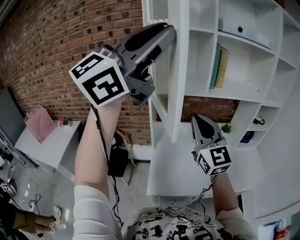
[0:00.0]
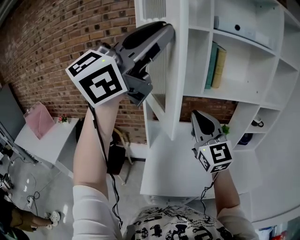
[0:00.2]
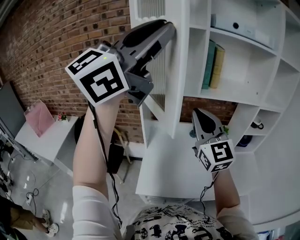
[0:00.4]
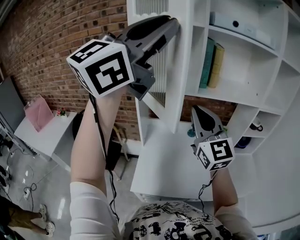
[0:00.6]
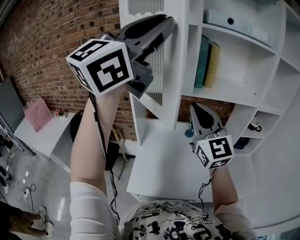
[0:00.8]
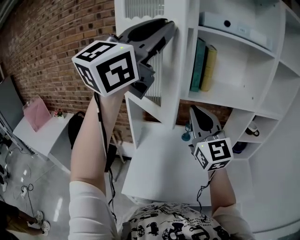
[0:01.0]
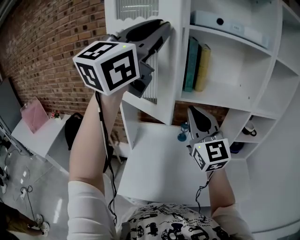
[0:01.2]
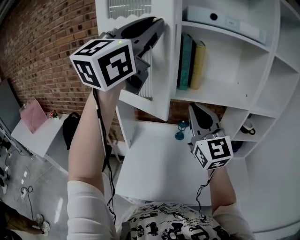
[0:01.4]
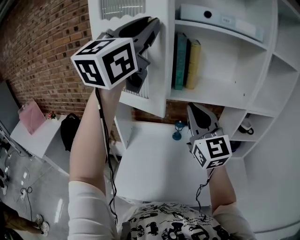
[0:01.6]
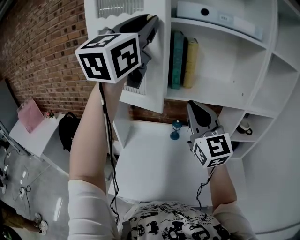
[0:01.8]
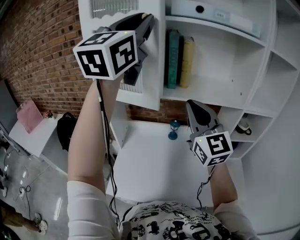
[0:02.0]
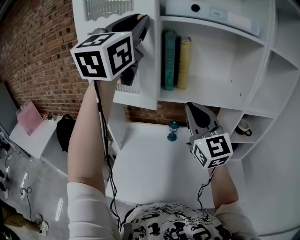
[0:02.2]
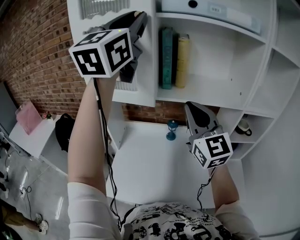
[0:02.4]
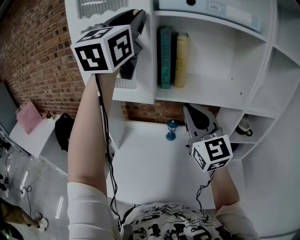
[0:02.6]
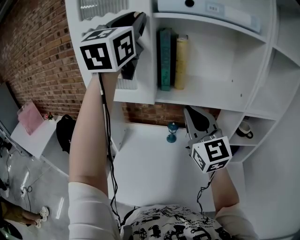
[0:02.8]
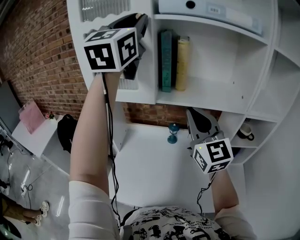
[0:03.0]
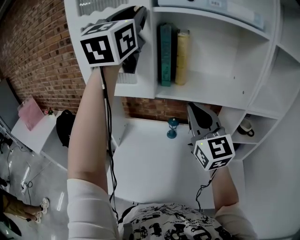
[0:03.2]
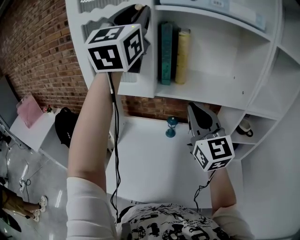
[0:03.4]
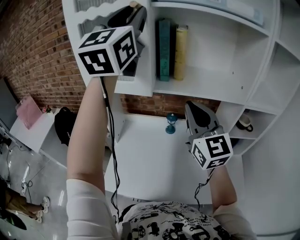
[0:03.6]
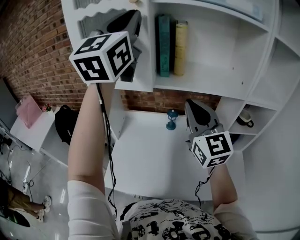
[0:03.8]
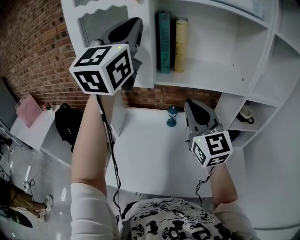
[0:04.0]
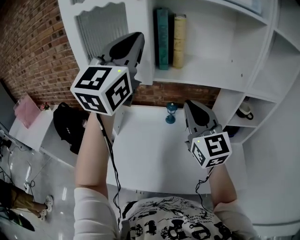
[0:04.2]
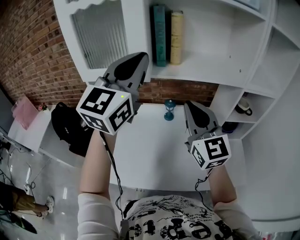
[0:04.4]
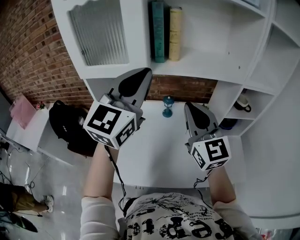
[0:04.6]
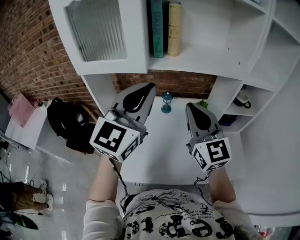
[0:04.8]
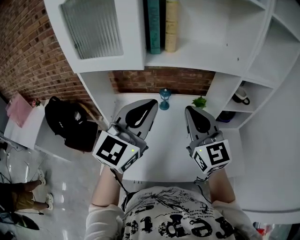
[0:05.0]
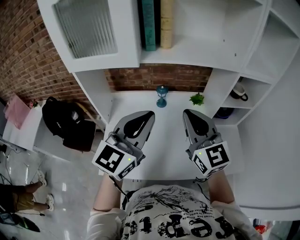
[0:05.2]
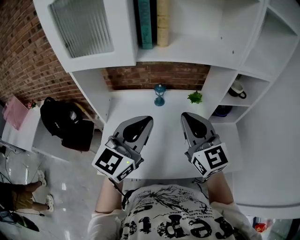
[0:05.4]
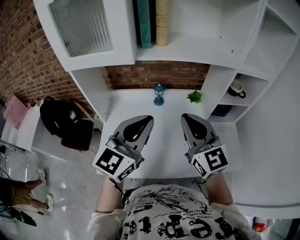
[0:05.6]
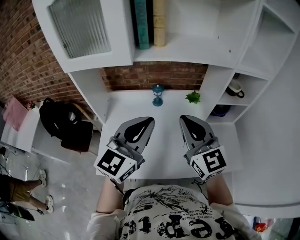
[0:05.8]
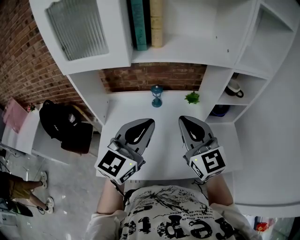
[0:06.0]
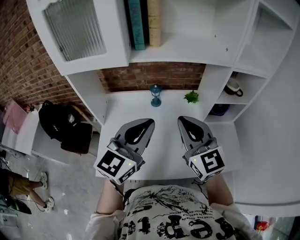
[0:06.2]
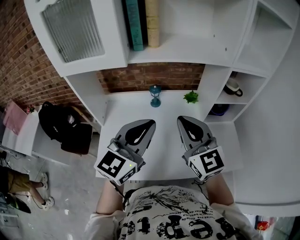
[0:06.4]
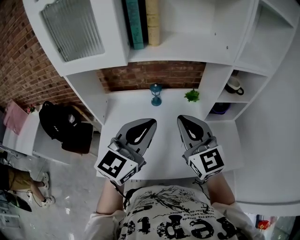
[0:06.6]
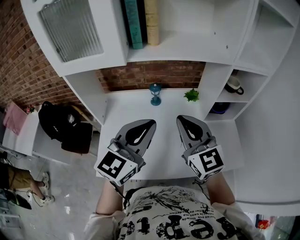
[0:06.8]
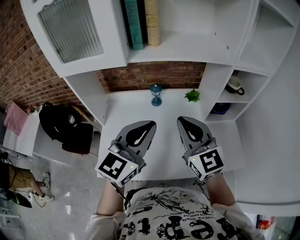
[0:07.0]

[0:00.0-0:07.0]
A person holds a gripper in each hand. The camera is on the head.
0:00.0 to 0:01.4: The left gripper shifts about 20 cm forward and to the right, and swivels approximately 20 degrees. The right gripper travels to the right and forward by approximately 20 cm.
0:01.4 to 0:02.8: The left gripper goes some 15 cm forward and to the right, and rotates about 20 degrees; the right gripper shifts some 10 cm to the right and forward.
0:02.8 to 0:04.2: The right gripper is displaced downward by some 5 cm. Meanwhile the left gripper is displaced downward by some 15 cm.
0:04.2 to 0:05.6: The left gripper heads downward, covering some 25 cm, and changes its angle by about 30 degrees; the right gripper heads downward and backward, covering about 10 cm.
0:05.6 to 0:07.0: The grippers make only small movements.

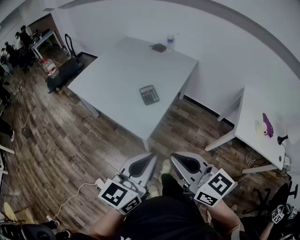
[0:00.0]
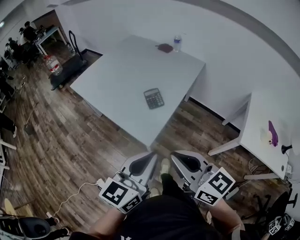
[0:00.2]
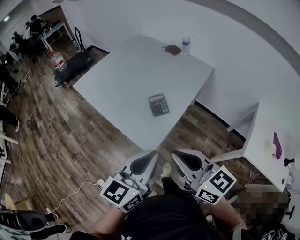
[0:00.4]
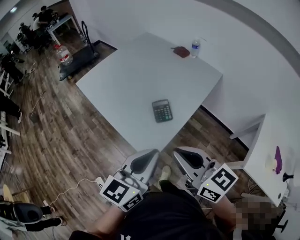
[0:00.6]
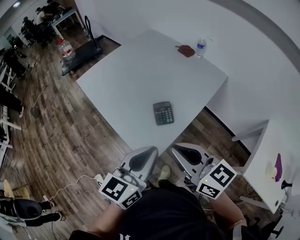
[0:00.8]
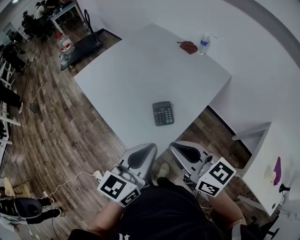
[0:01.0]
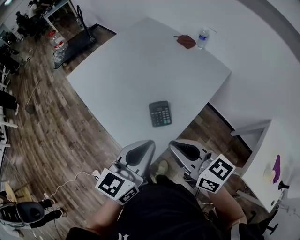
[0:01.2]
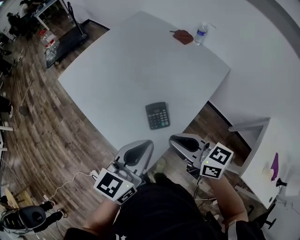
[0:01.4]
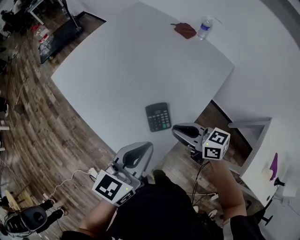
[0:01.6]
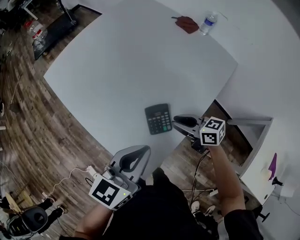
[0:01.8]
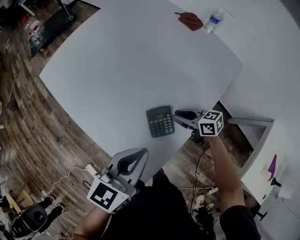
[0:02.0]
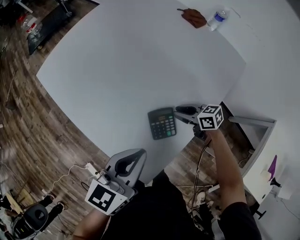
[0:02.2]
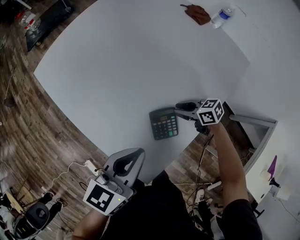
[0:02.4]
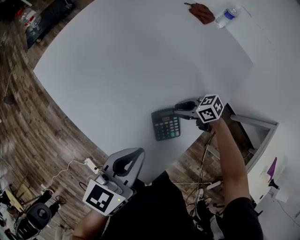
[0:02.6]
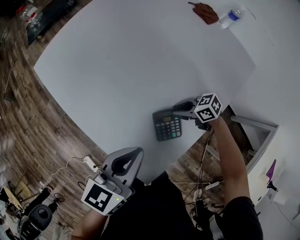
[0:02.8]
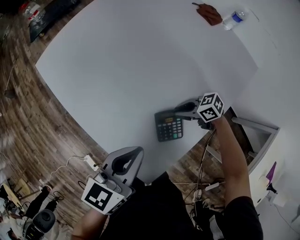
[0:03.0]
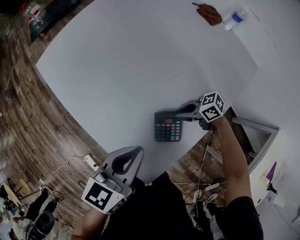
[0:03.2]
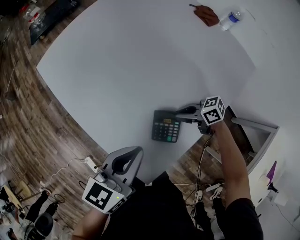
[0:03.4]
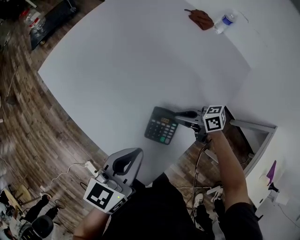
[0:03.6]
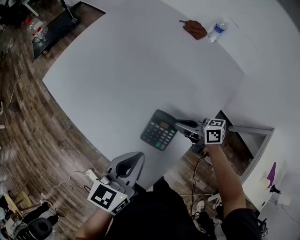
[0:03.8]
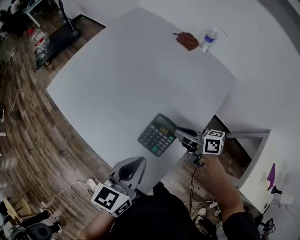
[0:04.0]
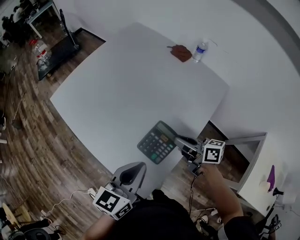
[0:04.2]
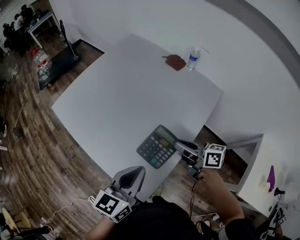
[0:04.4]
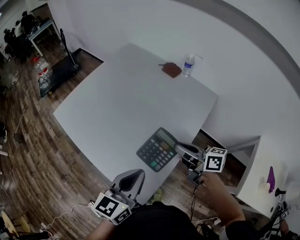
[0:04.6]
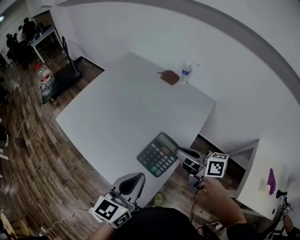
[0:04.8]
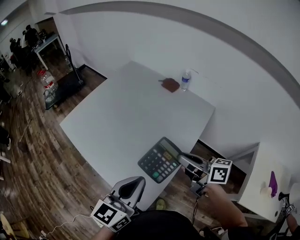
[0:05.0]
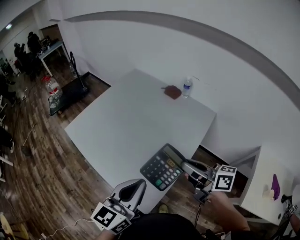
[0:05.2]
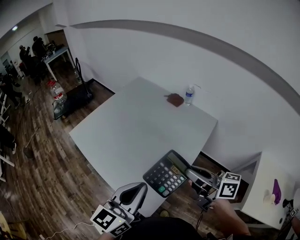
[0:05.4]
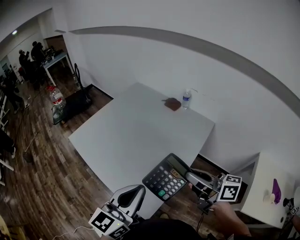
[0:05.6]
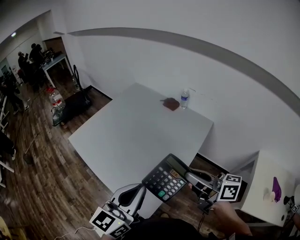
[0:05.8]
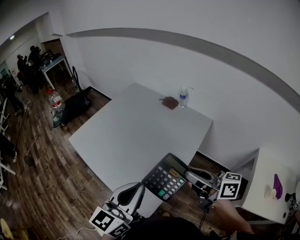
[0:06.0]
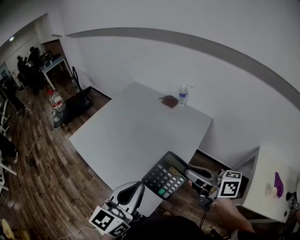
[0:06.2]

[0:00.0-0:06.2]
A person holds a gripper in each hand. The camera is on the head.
0:00.0 to 0:01.6: The right gripper is displaced forward and downward by some 50 cm, and rotates about 30 degrees; the left gripper travels forward by roughly 35 cm.
0:01.6 to 0:03.2: The right gripper goes some 20 cm downward, and swivels some 40 degrees; the left gripper shifts by approximately 15 cm.
0:03.2 to 0:04.6: The left gripper travels upward by about 10 cm, while the right gripper is displaced upward by about 25 cm, and changes its angle by approximately 60 degrees.
0:04.6 to 0:06.2: The grippers both shift upward and backward by approximately 15 cm.

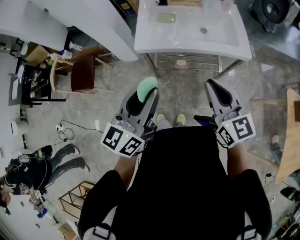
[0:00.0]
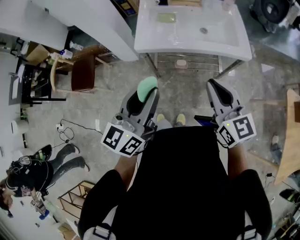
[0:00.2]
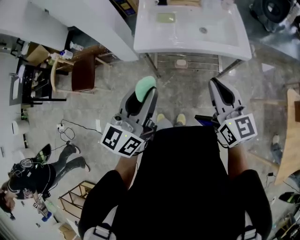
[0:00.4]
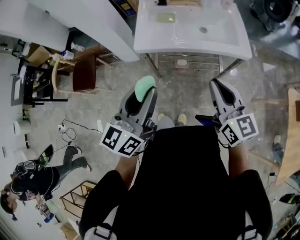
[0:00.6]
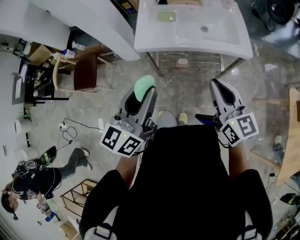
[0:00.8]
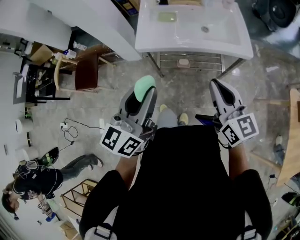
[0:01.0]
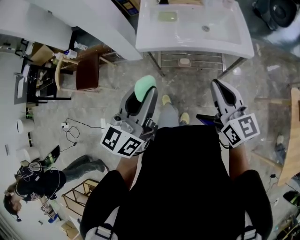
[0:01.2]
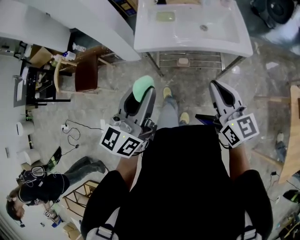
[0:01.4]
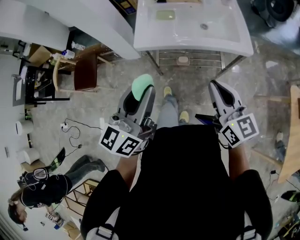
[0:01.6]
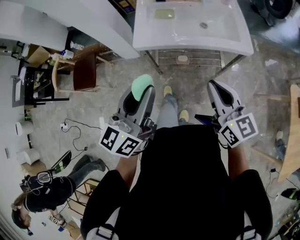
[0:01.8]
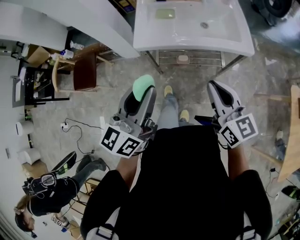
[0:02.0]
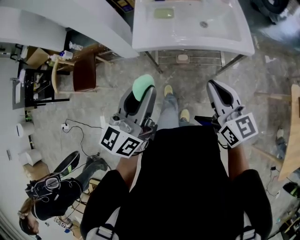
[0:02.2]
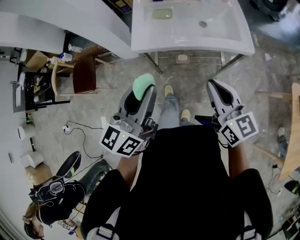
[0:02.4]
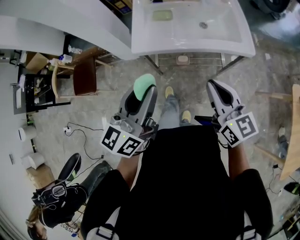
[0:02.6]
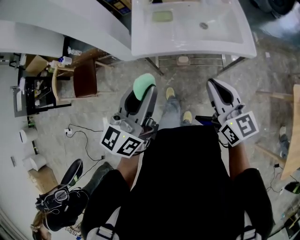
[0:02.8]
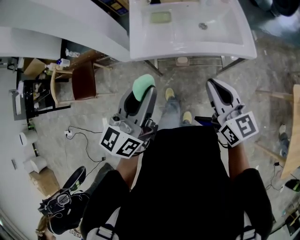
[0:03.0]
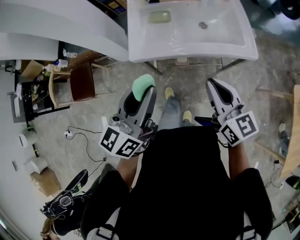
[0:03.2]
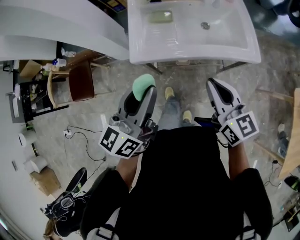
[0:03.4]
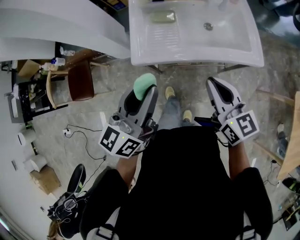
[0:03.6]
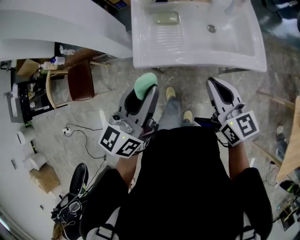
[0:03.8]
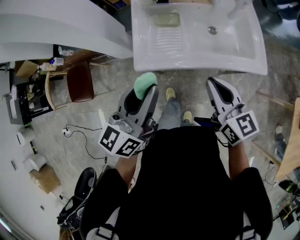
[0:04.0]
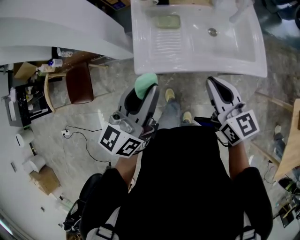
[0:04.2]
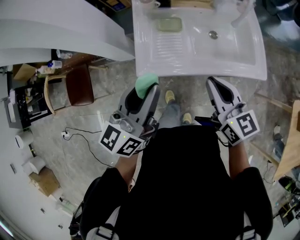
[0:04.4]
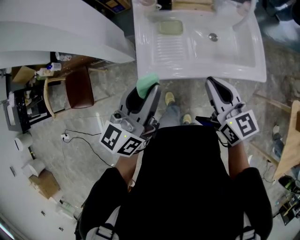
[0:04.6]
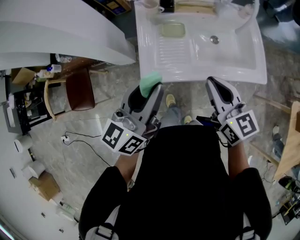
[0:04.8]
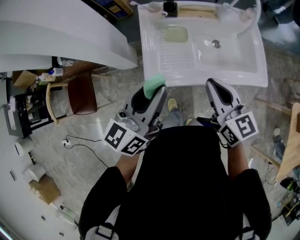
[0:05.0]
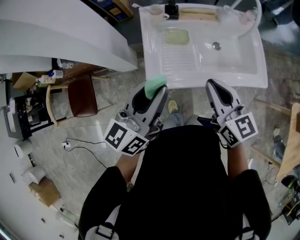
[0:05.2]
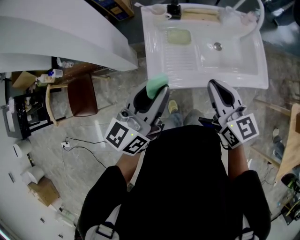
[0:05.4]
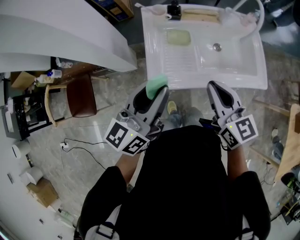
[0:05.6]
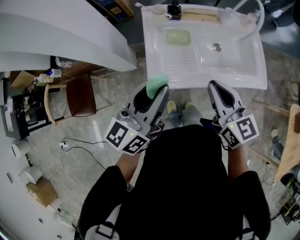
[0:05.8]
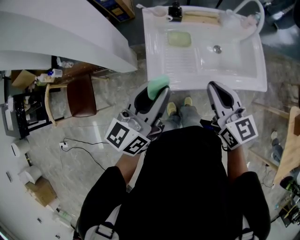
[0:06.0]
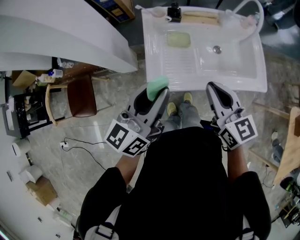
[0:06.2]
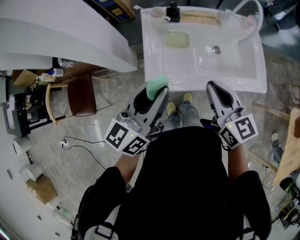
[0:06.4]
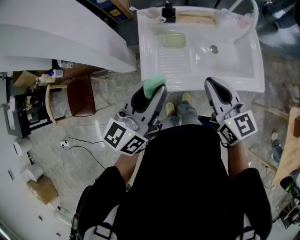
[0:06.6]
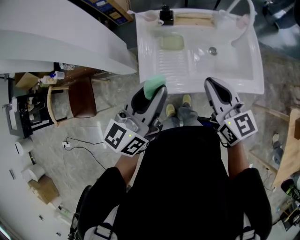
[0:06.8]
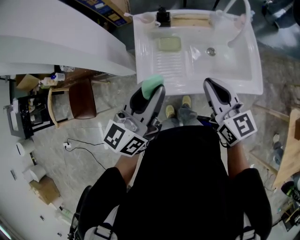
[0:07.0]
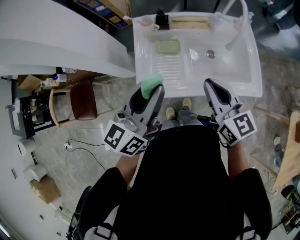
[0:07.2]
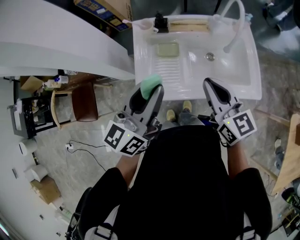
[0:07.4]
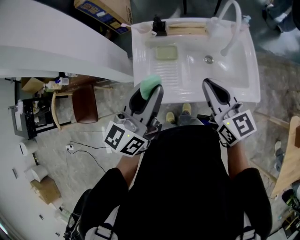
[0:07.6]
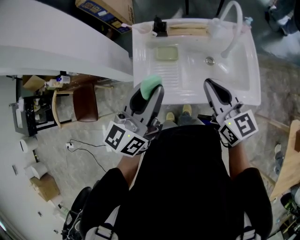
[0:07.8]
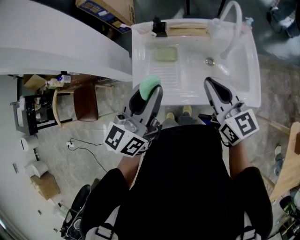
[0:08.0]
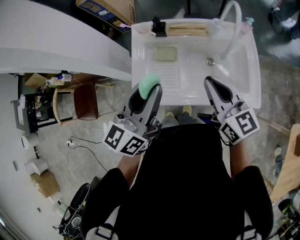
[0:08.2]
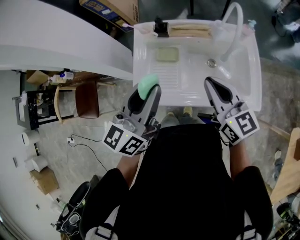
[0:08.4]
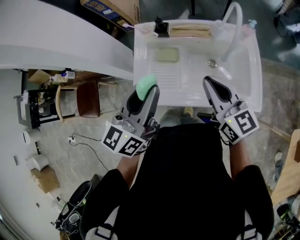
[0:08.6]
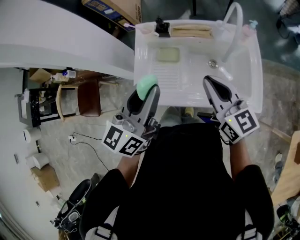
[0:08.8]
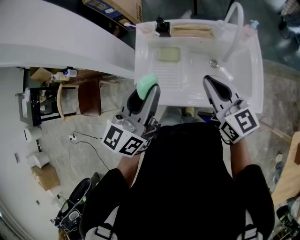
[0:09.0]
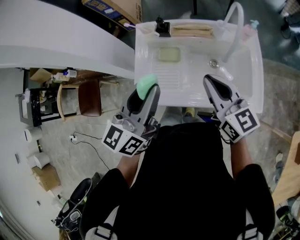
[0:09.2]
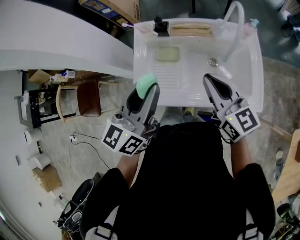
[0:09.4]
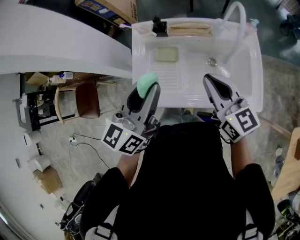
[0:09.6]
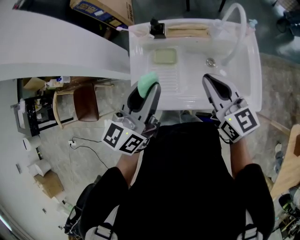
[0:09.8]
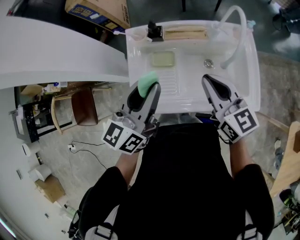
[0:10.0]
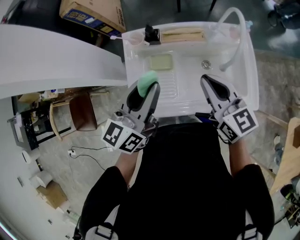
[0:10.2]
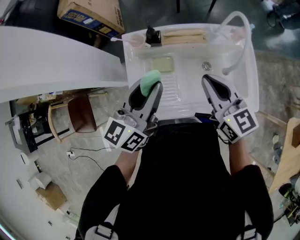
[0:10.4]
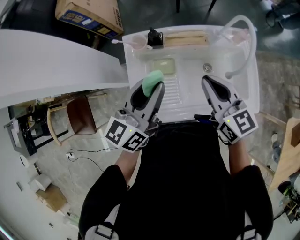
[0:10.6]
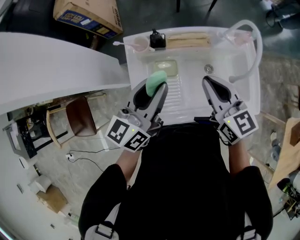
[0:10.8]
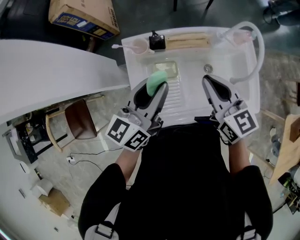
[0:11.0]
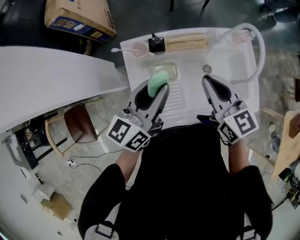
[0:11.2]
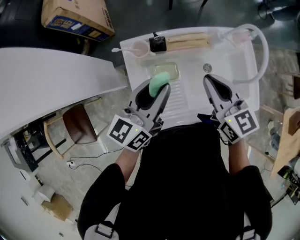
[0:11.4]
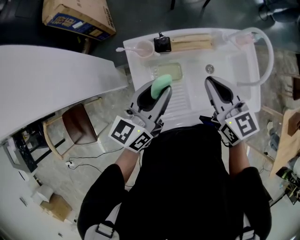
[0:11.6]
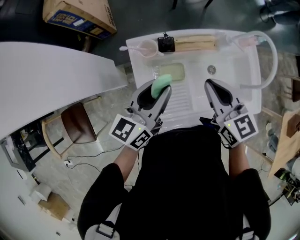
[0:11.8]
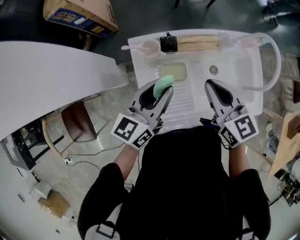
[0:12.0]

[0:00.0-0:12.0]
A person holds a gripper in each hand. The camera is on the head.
0:00.0 to 0:01.6: The grippers make only small movements.
0:01.6 to 0:03.0: The grippers both shift forward by approximately 10 cm.
0:03.0 to 0:04.4: The grippers both shift forward by approximately 15 cm.
0:04.4 to 0:06.0: The left gripper ends up roughly 5 cm from where it was; the right gripper shifts approximately 5 cm to the left.
0:06.0 to 0:07.6: The left gripper moves to the right, roughly 10 cm. Meanwhile the right gripper is displaced to the right and forward by some 10 cm.
0:07.6 to 0:09.0: There are only small adjustments of the grippers.
0:09.0 to 0:10.4: Both grippers travel together forward, approximately 10 cm.
0:10.4 to 0:12.0: The right gripper is displaced to the left and forward by approximately 10 cm. Meanwhile the left gripper is displaced downward, forward and to the left by some 10 cm.
